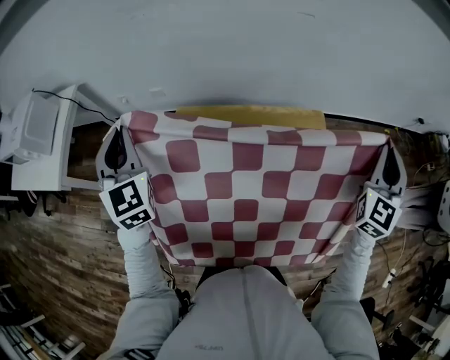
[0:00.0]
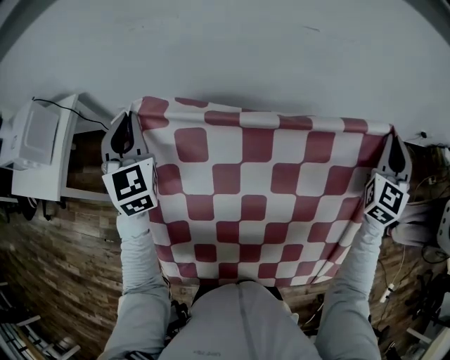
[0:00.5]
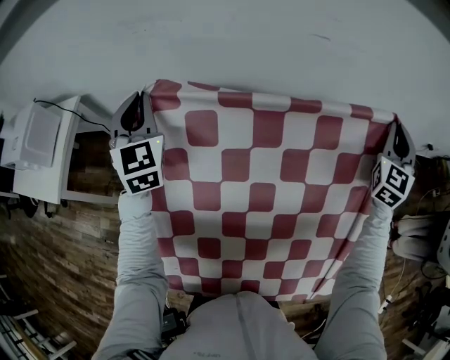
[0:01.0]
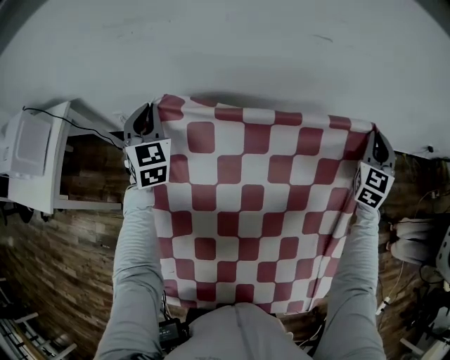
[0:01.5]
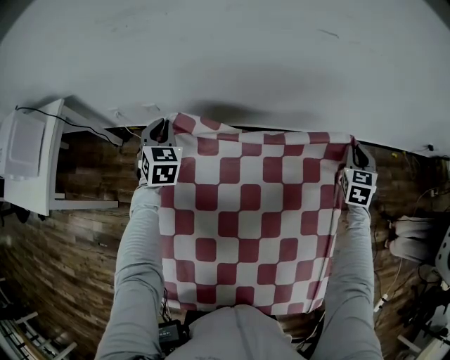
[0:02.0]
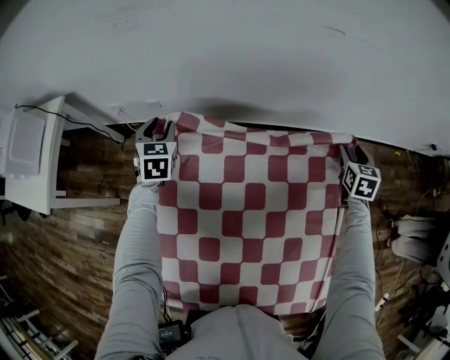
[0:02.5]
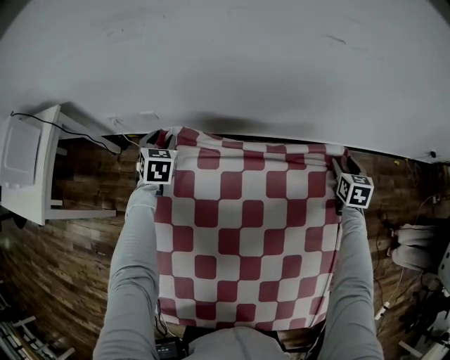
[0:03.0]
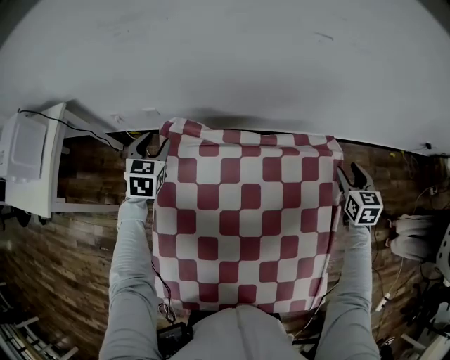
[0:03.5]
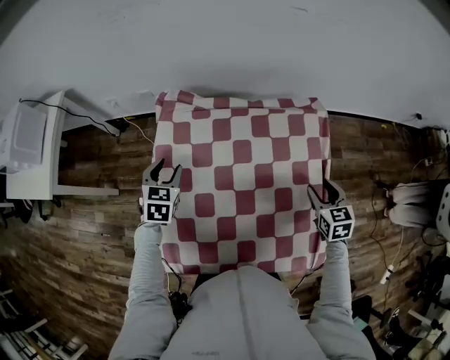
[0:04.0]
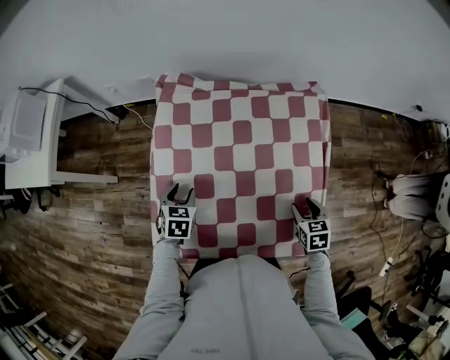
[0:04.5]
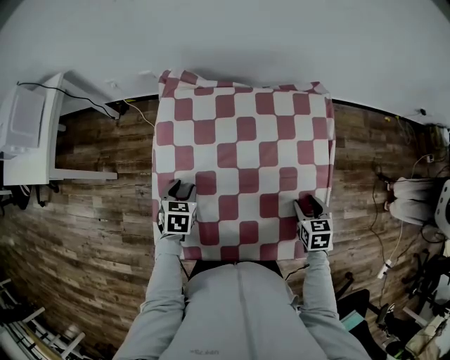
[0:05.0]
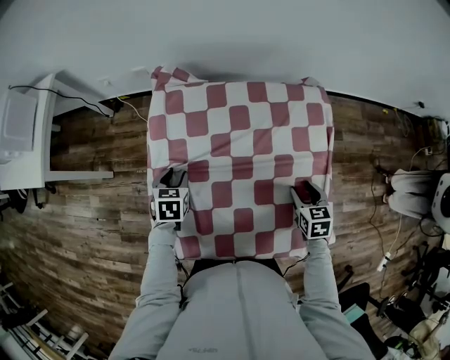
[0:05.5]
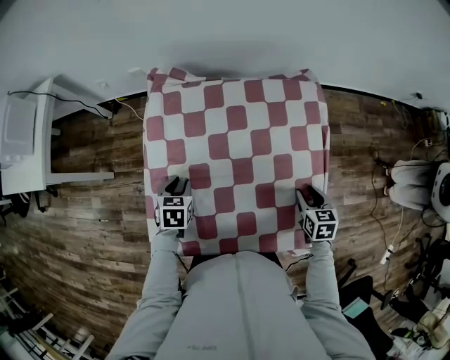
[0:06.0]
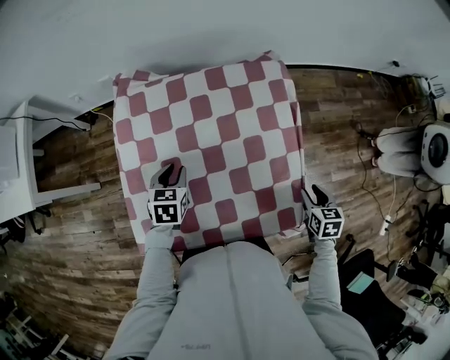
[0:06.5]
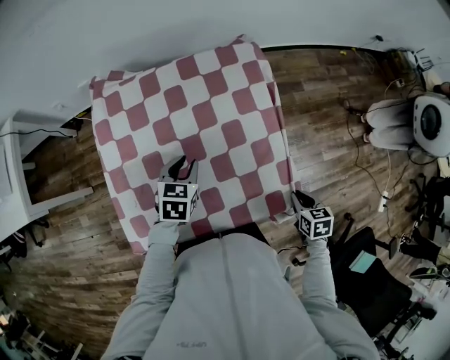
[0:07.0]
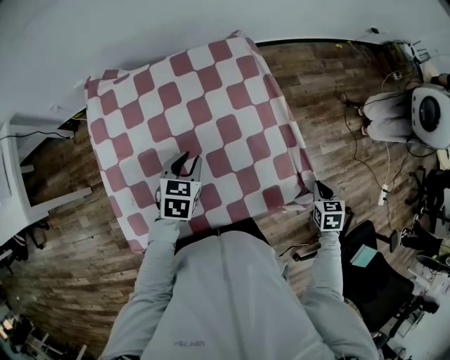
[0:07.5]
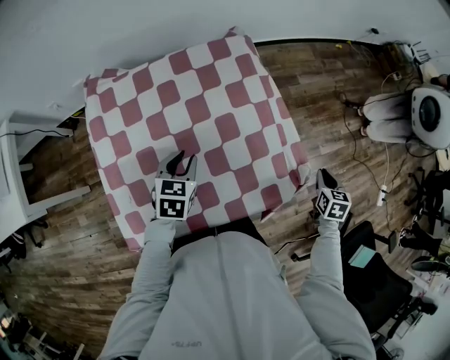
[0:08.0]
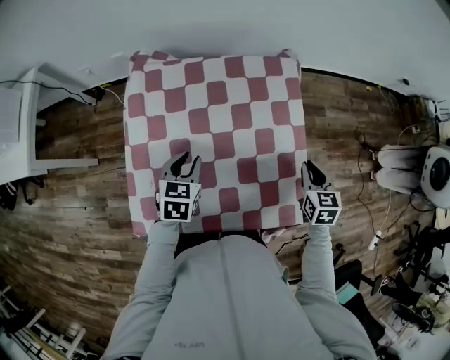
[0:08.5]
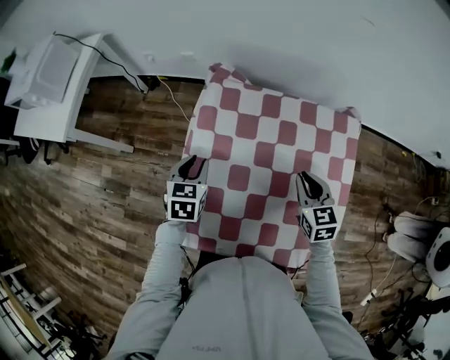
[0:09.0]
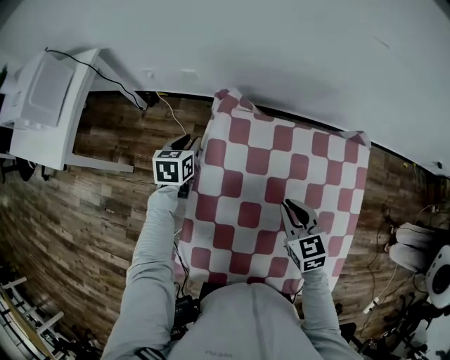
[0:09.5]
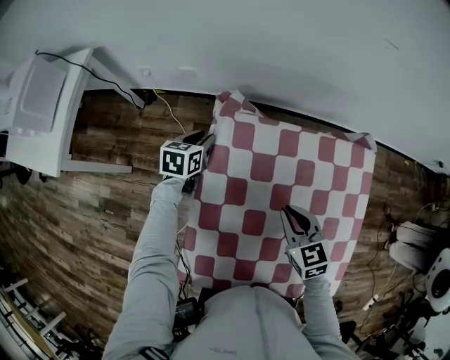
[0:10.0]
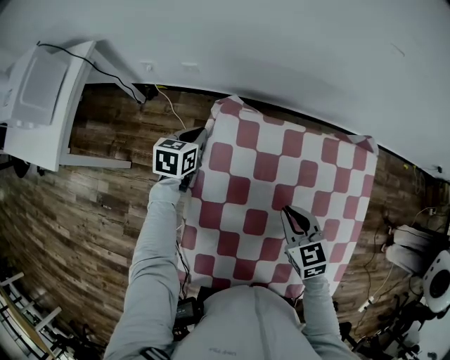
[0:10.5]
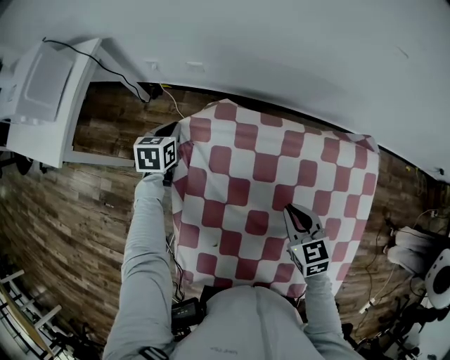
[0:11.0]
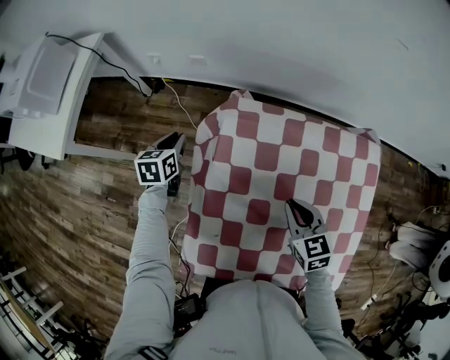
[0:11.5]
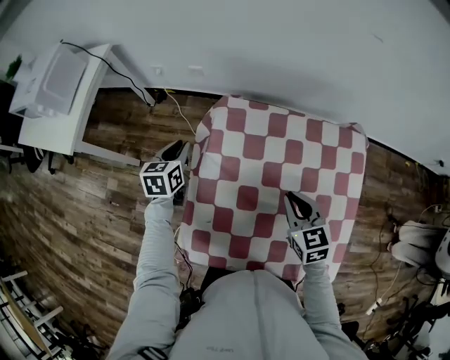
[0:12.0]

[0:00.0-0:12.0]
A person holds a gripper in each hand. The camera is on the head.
0:00.0 to 0:02.0: The right gripper heads downward and forward, covering about 35 cm, and points its fingers about 30 degrees further downward. The left gripper is displaced forward and downward by approximately 30 cm, and turns by approximately 30 degrees.
0:02.0 to 0:04.0: Both grippers move backward, some 25 cm. The right gripper rotates about 30 degrees, and opens up, while the left gripper opens its fingers.
0:04.0 to 0:06.0: The left gripper goes forward and backward, roughly 15 cm each way, reversing 2 times. The right gripper swings forward and backward, some 10 cm each way, with 2 reversals.
0:06.0 to 0:08.0: The left gripper ends up about 20 cm from where it was, and turns by some 30 degrees; the right gripper shifts by roughly 25 cm, turns by about 30 degrees, and closes.
0:08.0 to 0:10.0: The two grippers travel together, some 50 cm. The left gripper turns by approximately 30 degrees, while the right gripper rotates some 60 degrees.
0:10.0 to 0:12.0: The left gripper is displaced backward, to the left and upward by some 15 cm, while the right gripper changes place by about 5 cm.

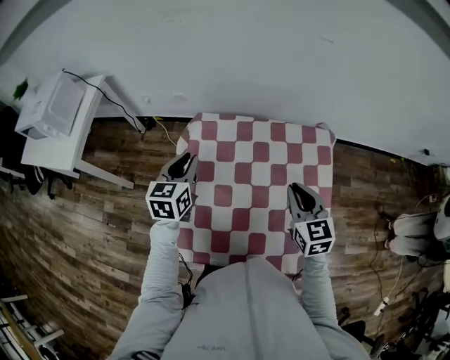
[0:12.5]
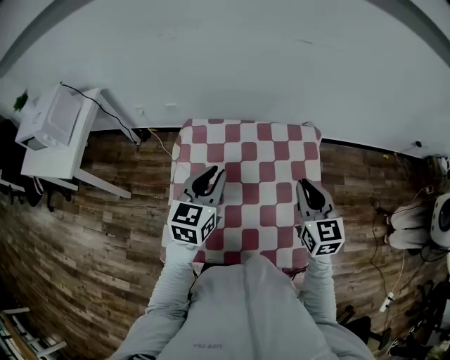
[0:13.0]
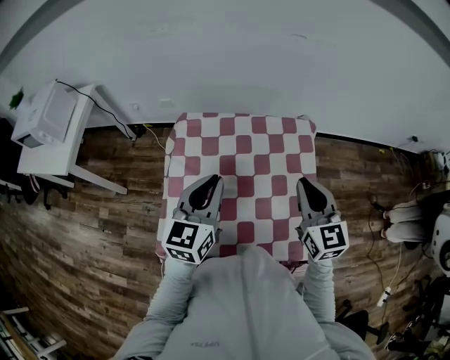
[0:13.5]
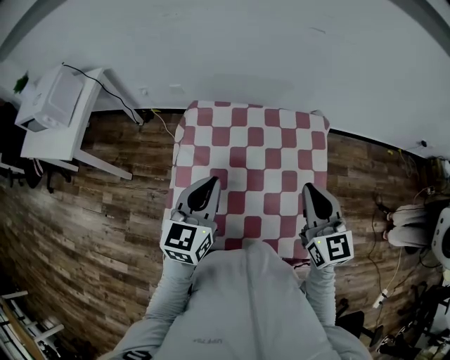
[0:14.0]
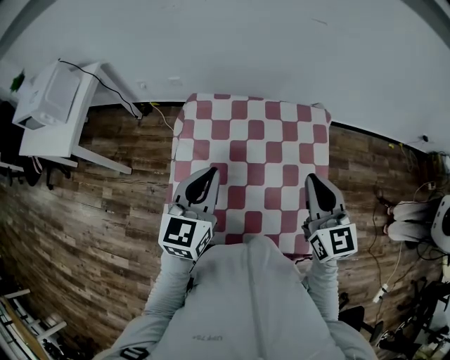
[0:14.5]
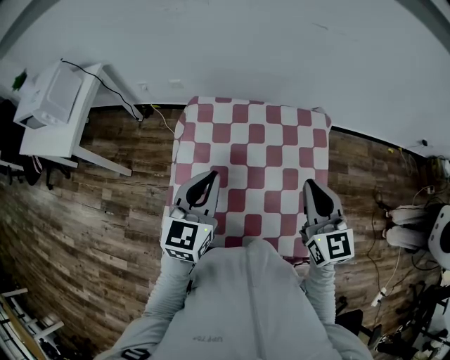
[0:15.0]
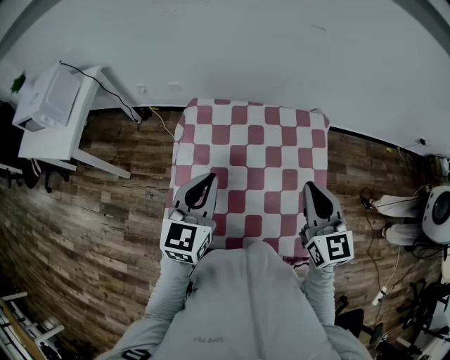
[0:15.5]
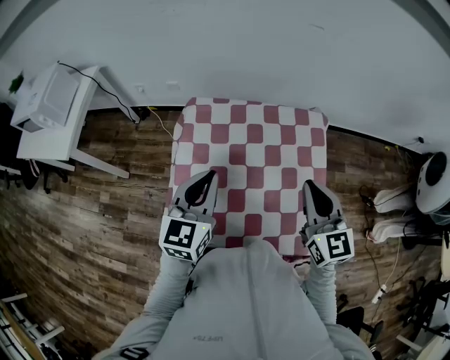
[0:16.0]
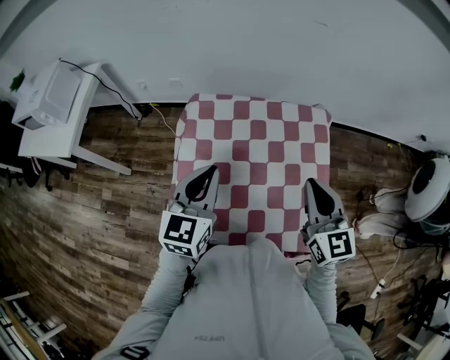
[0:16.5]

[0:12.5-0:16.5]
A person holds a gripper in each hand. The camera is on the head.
0:12.5 to 0:14.5: The left gripper shifts about 20 cm backward, to the right and upward, while the right gripper moves upward and backward, some 10 cm.
0:14.5 to 0:16.5: The grippers move only a little.

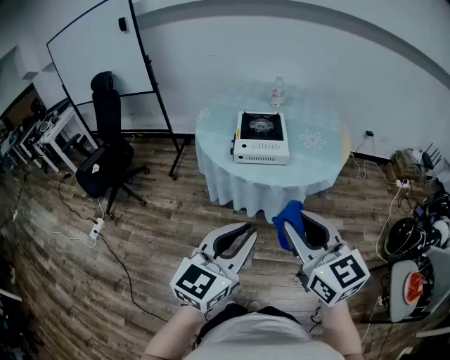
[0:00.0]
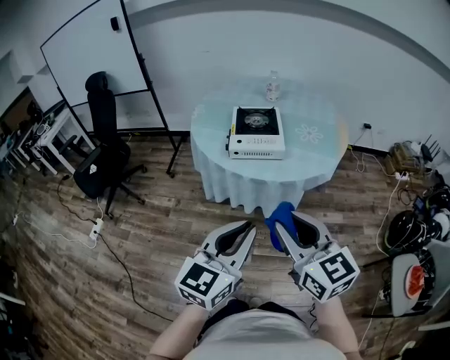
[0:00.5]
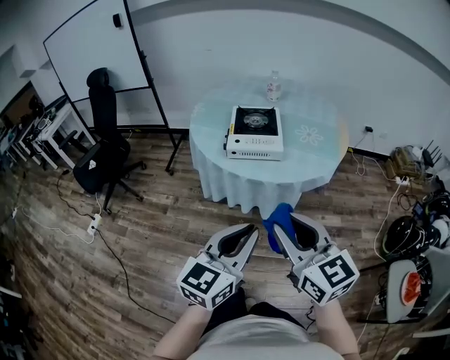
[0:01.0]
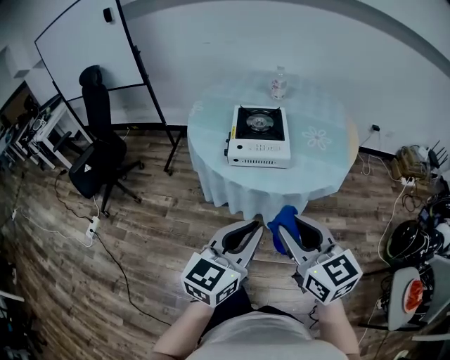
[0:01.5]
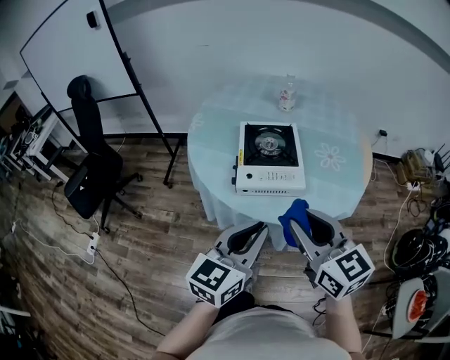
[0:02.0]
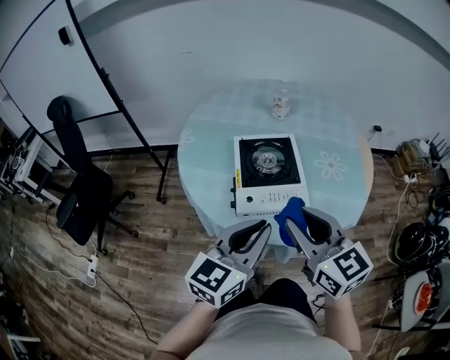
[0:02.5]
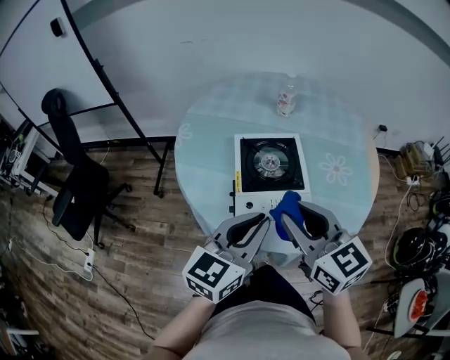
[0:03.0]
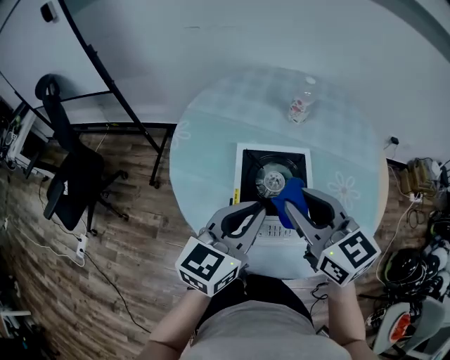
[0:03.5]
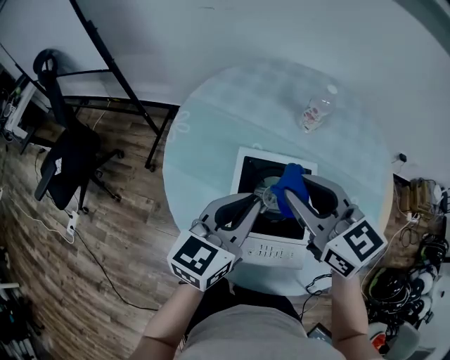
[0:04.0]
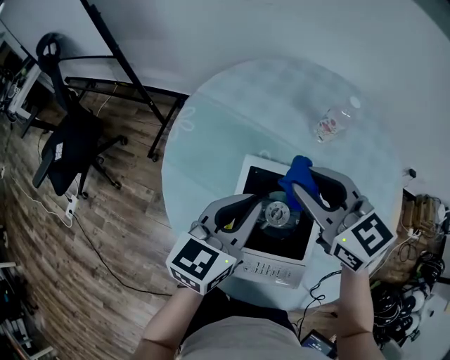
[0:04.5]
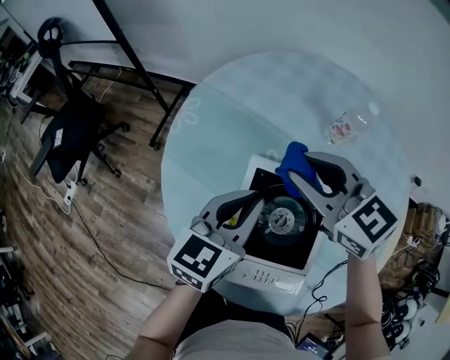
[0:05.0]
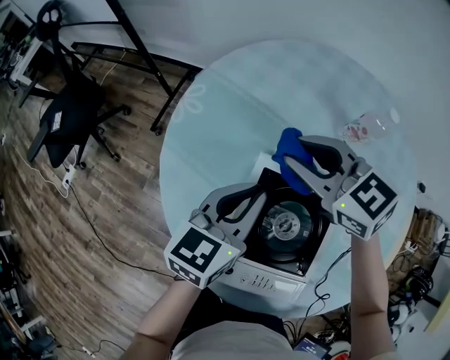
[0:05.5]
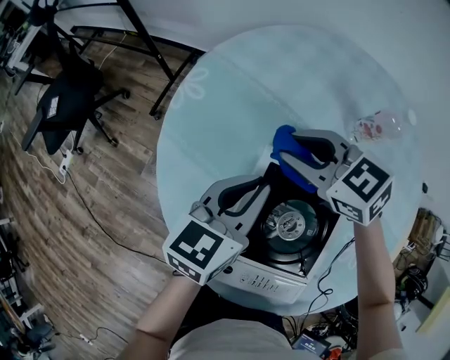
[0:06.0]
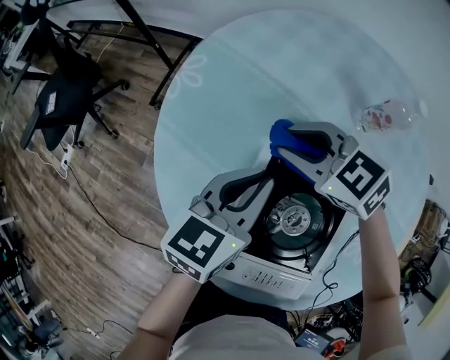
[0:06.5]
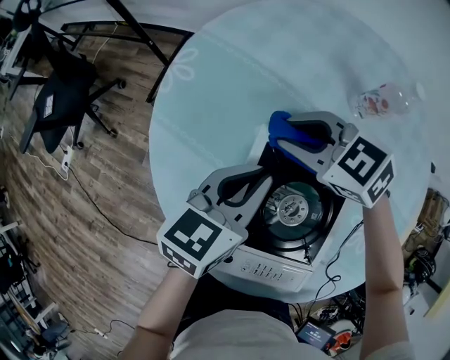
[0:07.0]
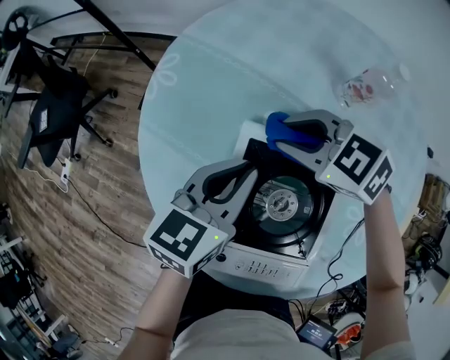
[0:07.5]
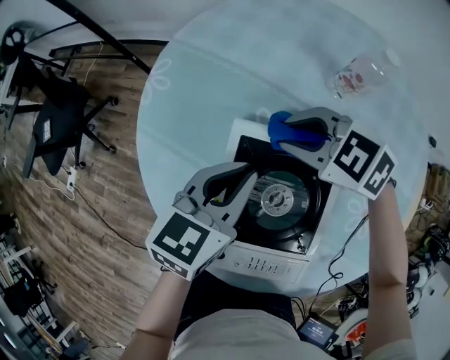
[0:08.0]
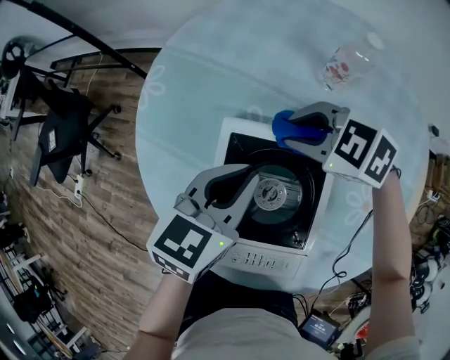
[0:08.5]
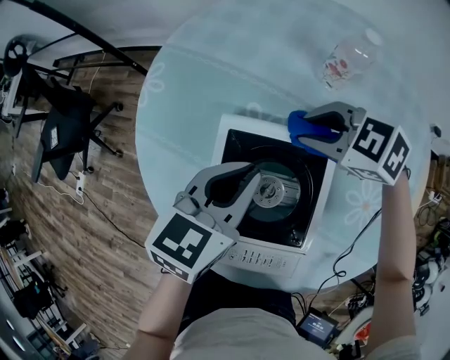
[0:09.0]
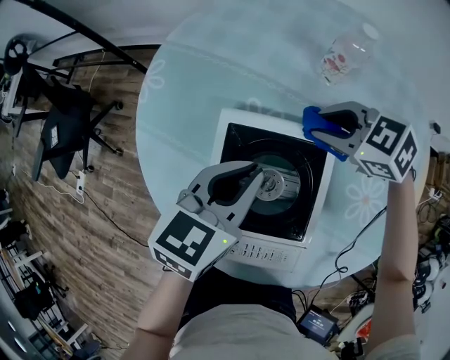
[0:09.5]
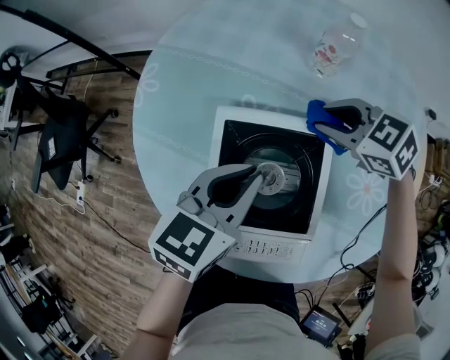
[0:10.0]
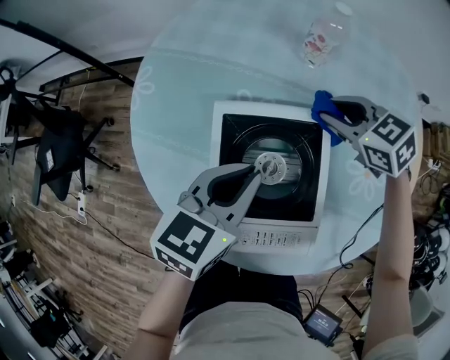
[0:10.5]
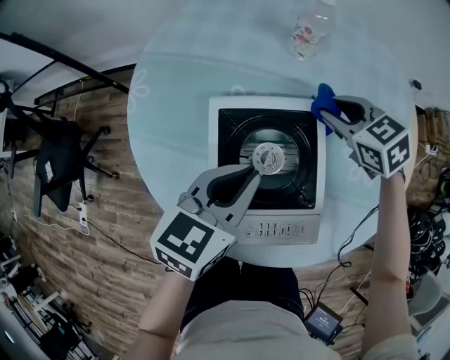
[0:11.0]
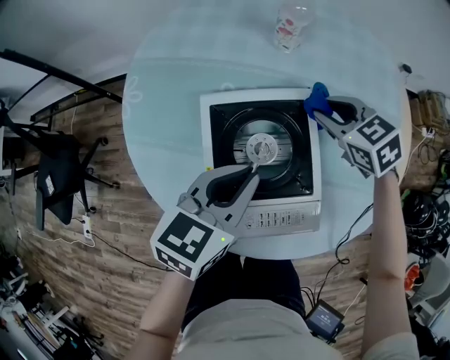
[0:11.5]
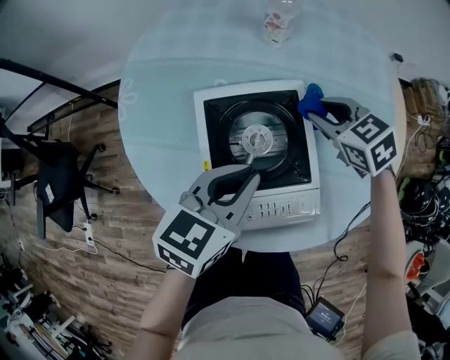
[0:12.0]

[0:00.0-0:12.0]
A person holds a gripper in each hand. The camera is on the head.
0:00.0 to 0:02.0: The grippers both shift forward by roughly 25 cm.
0:02.0 to 0:04.0: The two grippers go approximately 35 cm forward.
0:04.0 to 0:06.0: The left gripper goes some 15 cm forward and downward. Meanwhile the right gripper shifts approximately 20 cm forward and downward, and swivels about 40 degrees.
0:06.0 to 0:08.0: The right gripper shifts approximately 5 cm to the right.
0:08.0 to 0:10.0: The right gripper is displaced to the right by some 10 cm. The left gripper moves some 5 cm.
0:10.0 to 0:12.0: The two grippers go roughly 10 cm backward. The right gripper rotates some 30 degrees.
